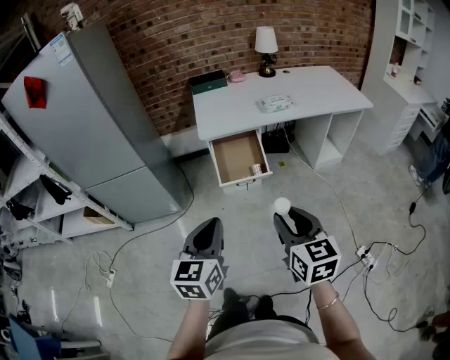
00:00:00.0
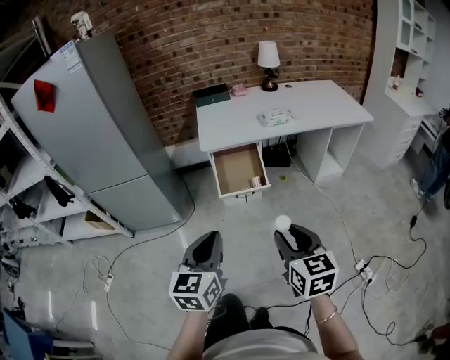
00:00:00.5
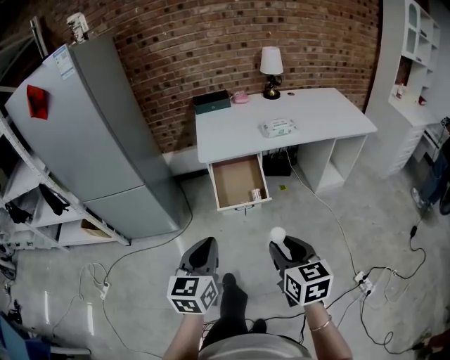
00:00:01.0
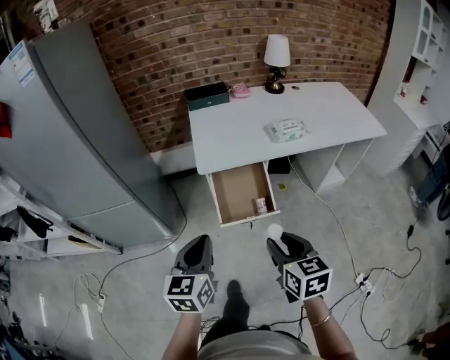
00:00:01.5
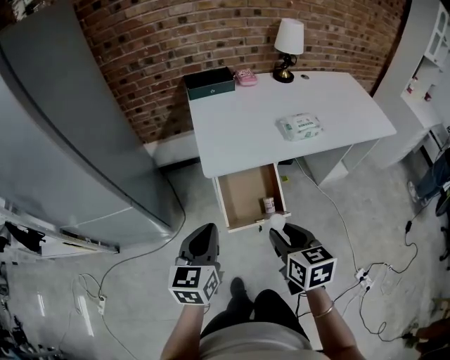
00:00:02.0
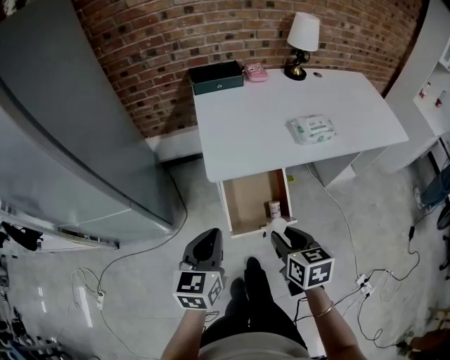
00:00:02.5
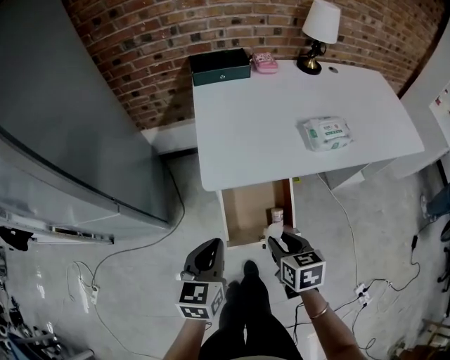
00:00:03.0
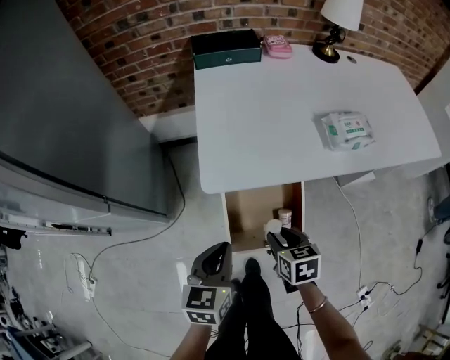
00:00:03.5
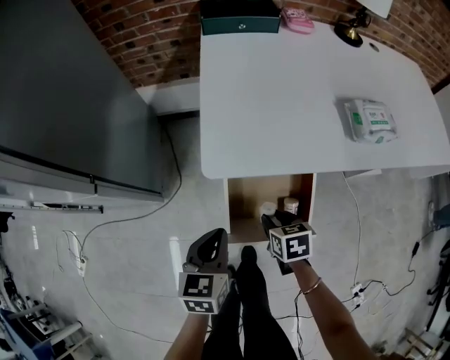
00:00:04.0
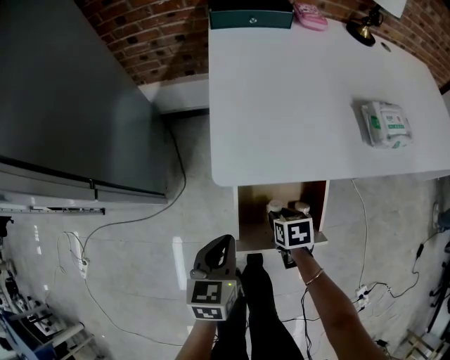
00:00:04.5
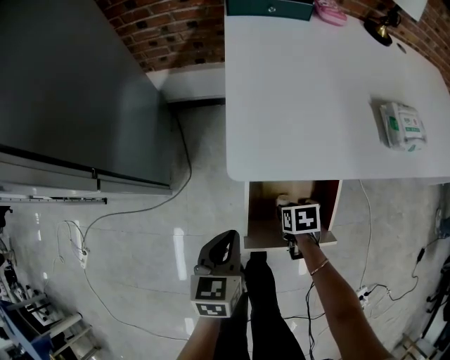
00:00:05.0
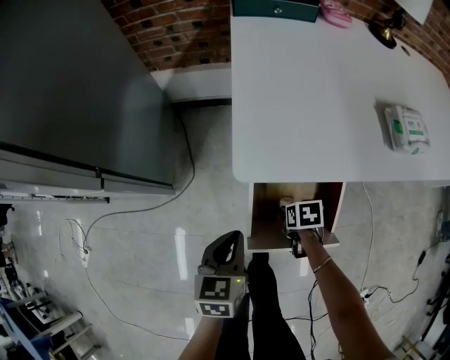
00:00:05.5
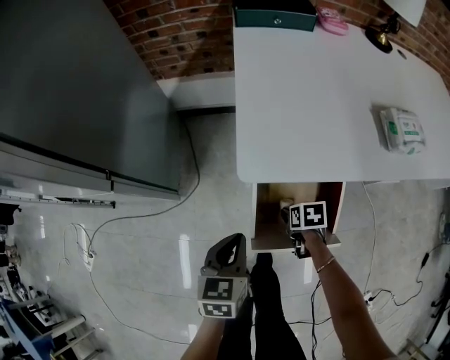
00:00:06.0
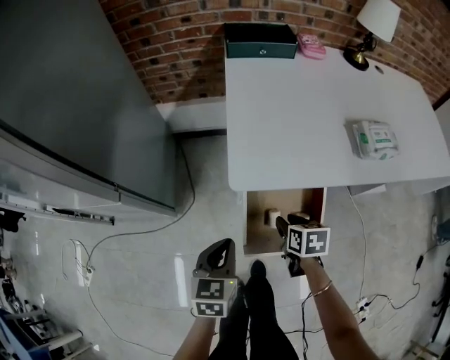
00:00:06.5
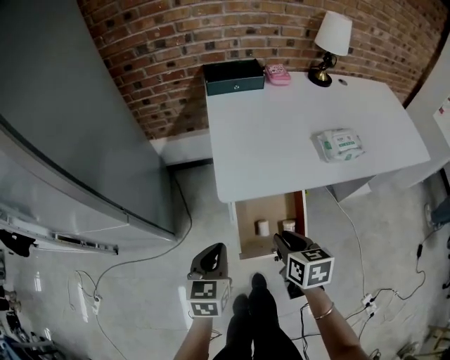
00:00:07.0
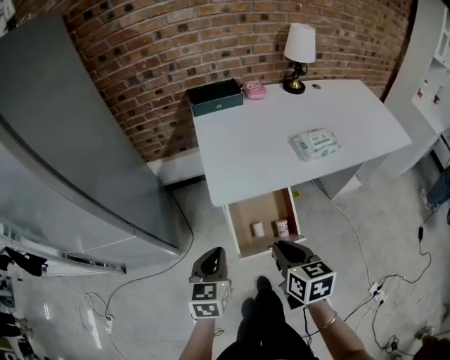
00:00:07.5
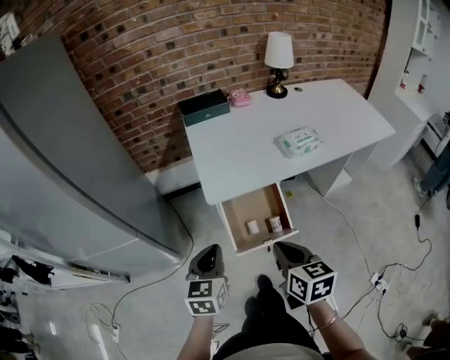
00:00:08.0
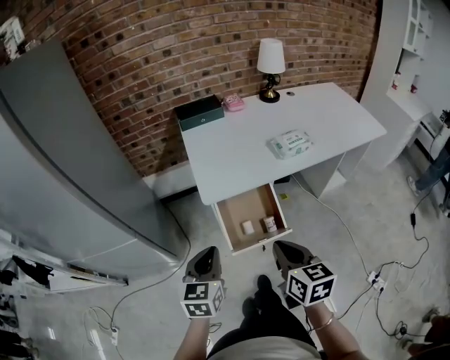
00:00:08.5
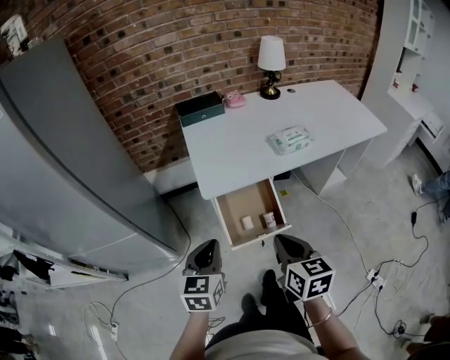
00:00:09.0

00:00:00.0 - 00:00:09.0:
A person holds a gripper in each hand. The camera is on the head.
00:00:00.0 - 00:00:02.0: The two grippers go roughly 40 cm forward.
00:00:02.0 - 00:00:04.5: Both grippers move downward and forward, approximately 40 cm. The right gripper tips its fingers downward by about 30 degrees; the left gripper changes its angle by about 20 degrees.
00:00:04.5 - 00:00:07.0: The left gripper goes approximately 15 cm upward. The right gripper moves upward, roughly 25 cm, and rotates about 30 degrees.
00:00:07.0 - 00:00:09.0: The left gripper is displaced upward and backward by some 20 cm; the right gripper travels backward and upward by roughly 25 cm, and closes.

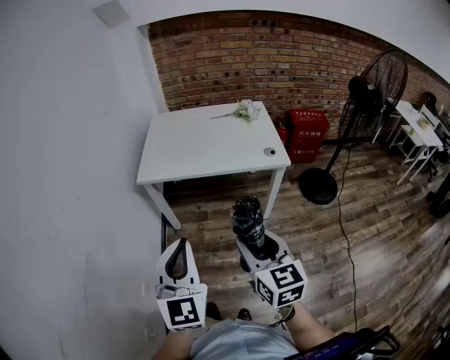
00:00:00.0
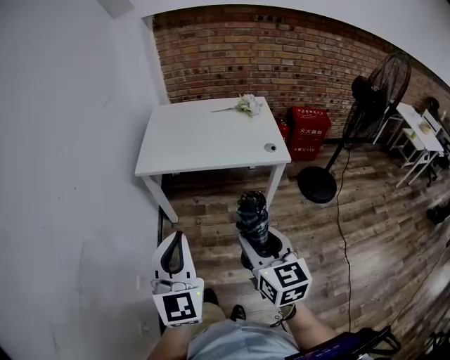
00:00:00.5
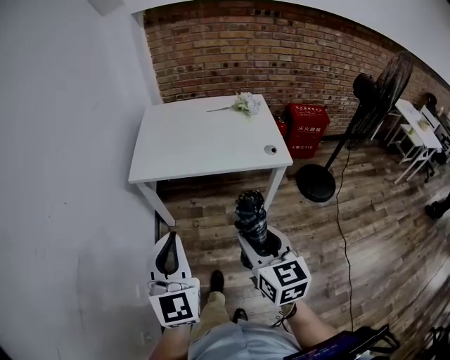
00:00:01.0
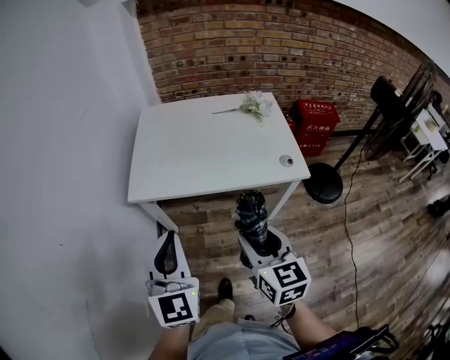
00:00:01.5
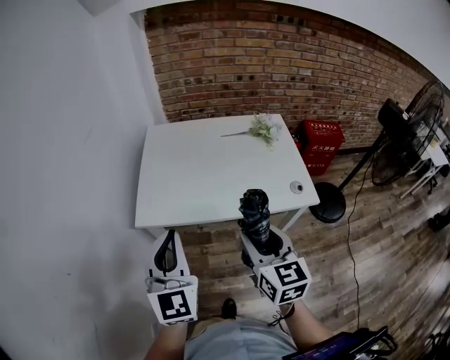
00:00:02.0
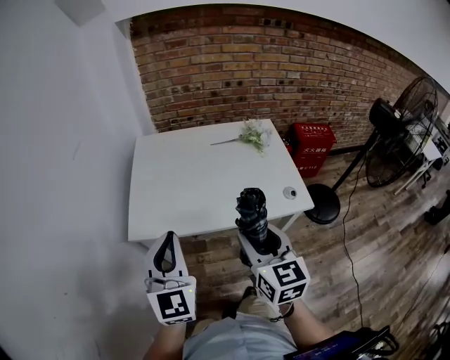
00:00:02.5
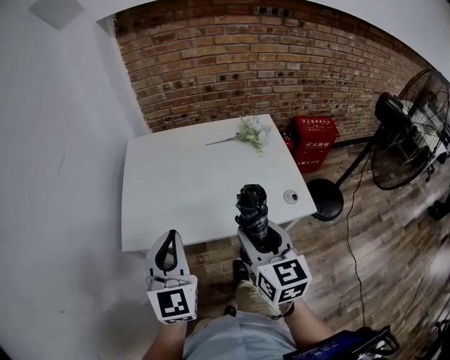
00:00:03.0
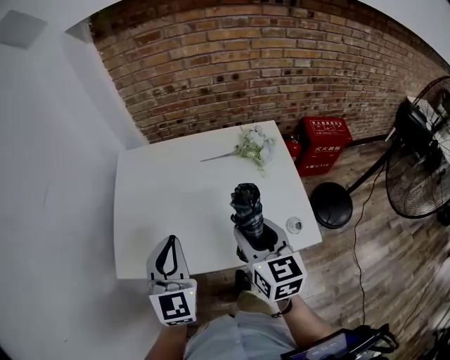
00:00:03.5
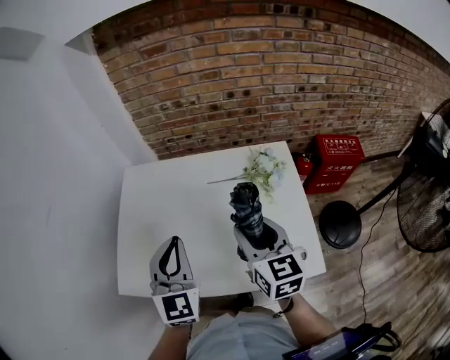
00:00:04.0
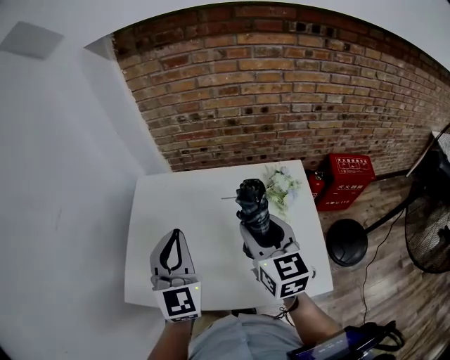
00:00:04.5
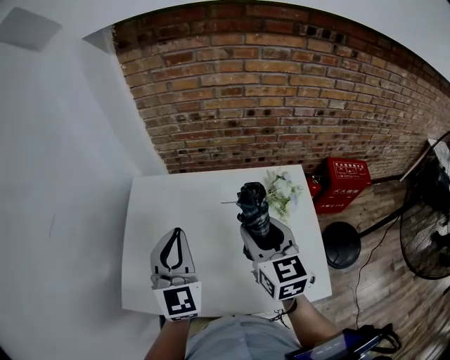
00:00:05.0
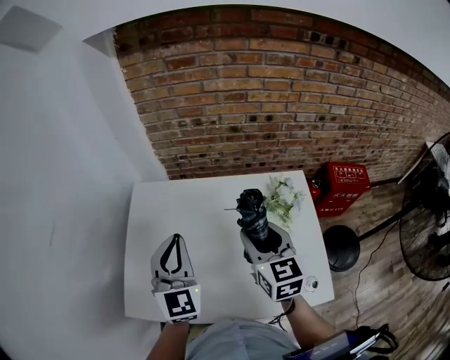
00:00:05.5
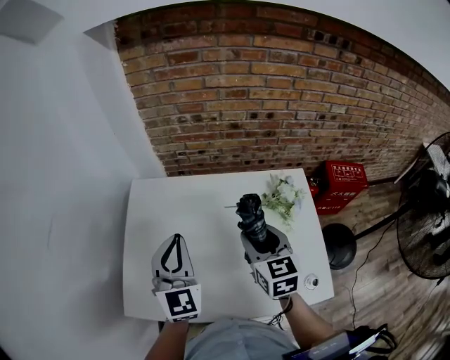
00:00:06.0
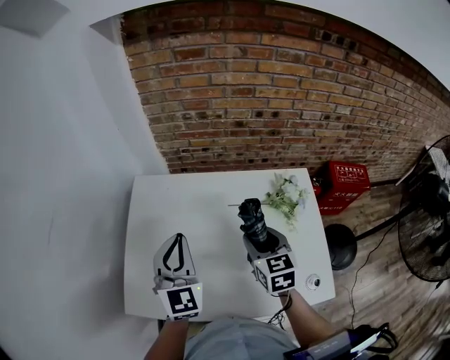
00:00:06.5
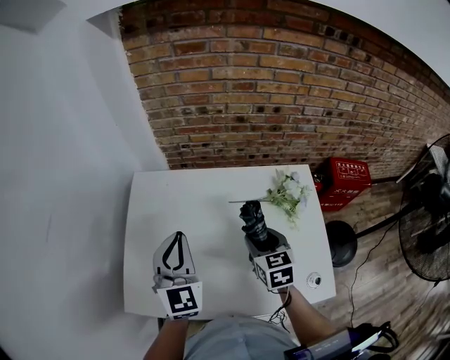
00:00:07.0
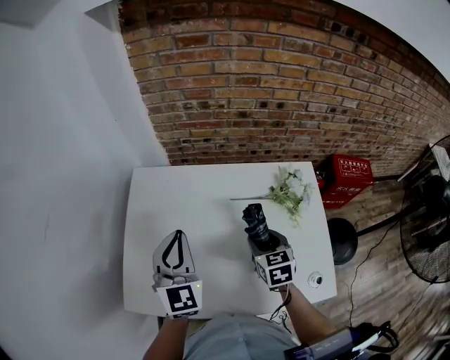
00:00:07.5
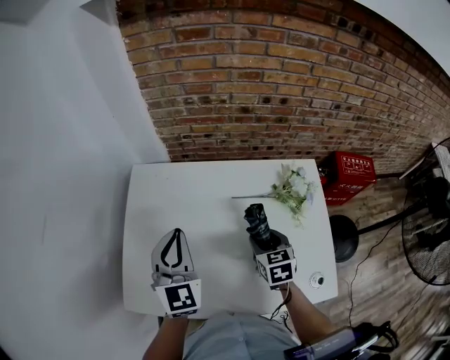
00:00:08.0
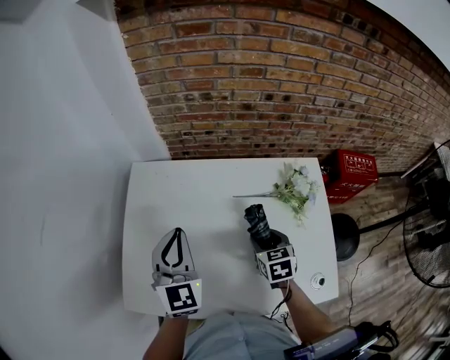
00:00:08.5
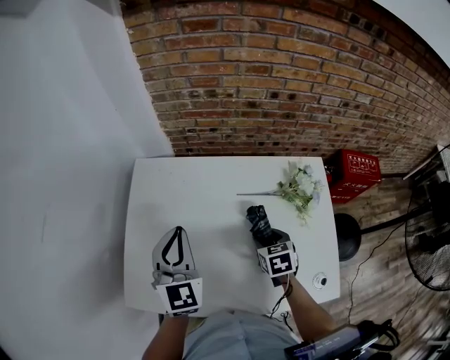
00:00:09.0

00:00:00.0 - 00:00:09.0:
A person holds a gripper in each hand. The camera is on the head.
00:00:00.0 - 00:00:02.0: Both grippers travel together forward, some 30 cm.
00:00:02.0 - 00:00:04.5: The two grippers go roughly 35 cm forward.
00:00:04.5 - 00:00:07.0: The right gripper shifts some 15 cm downward, and changes its angle by approximately 20 degrees. The left gripper goes roughly 10 cm forward, downward and to the left.
00:00:07.0 - 00:00:09.0: The right gripper is displaced downward by roughly 10 cm.

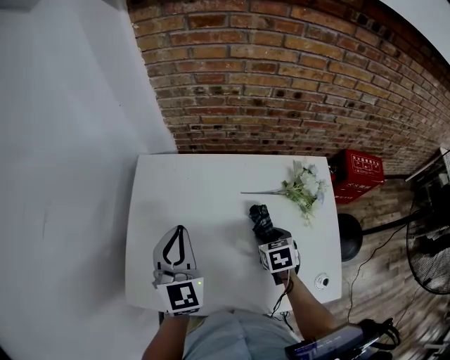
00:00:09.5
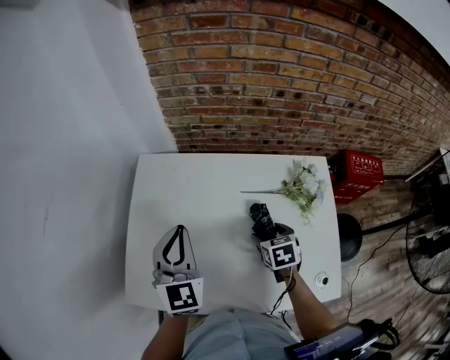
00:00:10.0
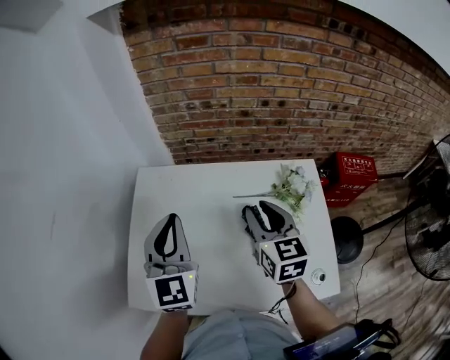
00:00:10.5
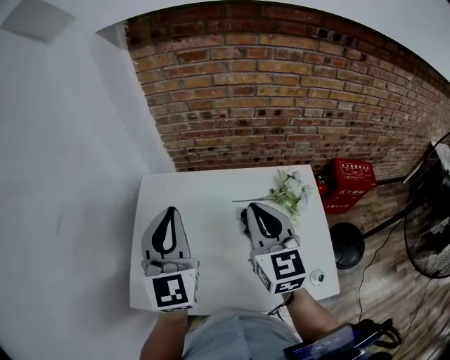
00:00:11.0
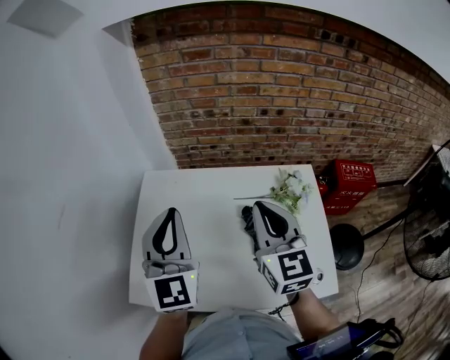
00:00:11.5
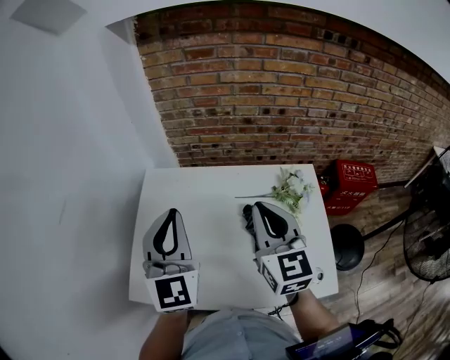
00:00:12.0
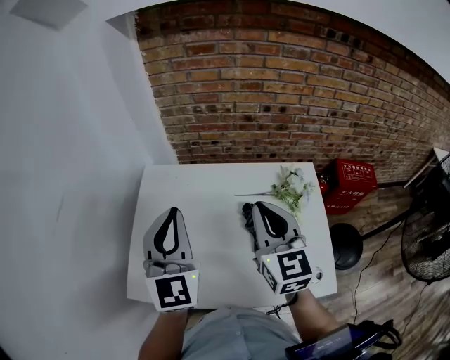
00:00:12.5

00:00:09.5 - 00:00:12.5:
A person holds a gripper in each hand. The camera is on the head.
00:00:09.5 - 00:00:11.0: The right gripper heads upward, covering roughly 30 cm, points its fingers some 50 degrees further upward, and closes up; the left gripper goes about 15 cm upward.
00:00:11.0 - 00:00:12.5: The grippers make only small movements.

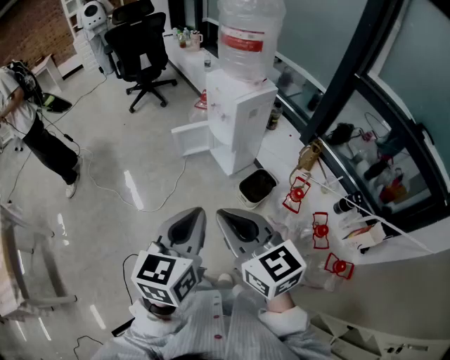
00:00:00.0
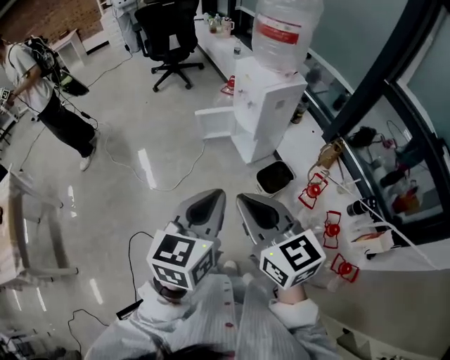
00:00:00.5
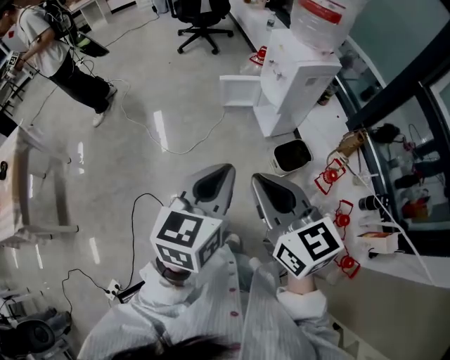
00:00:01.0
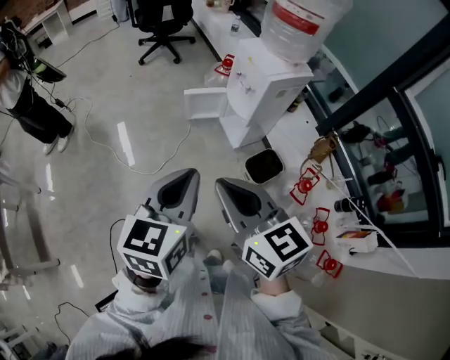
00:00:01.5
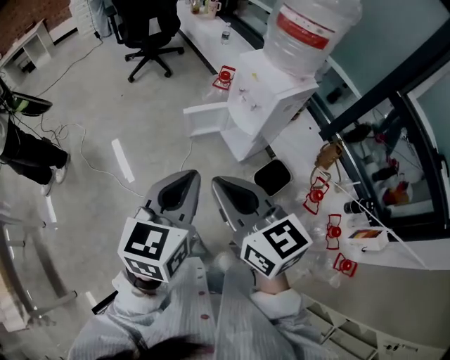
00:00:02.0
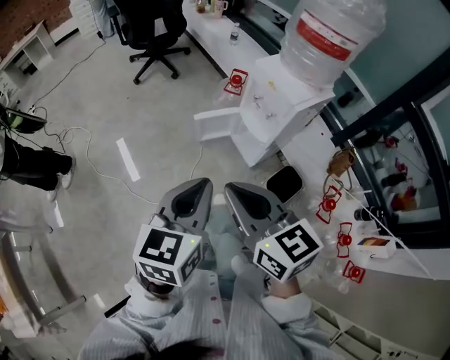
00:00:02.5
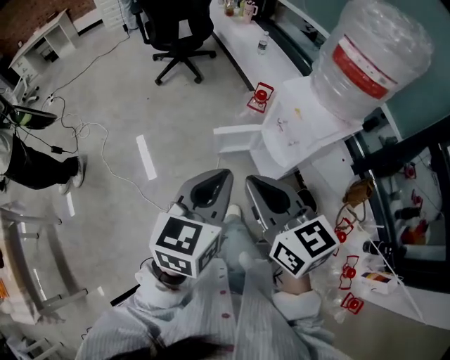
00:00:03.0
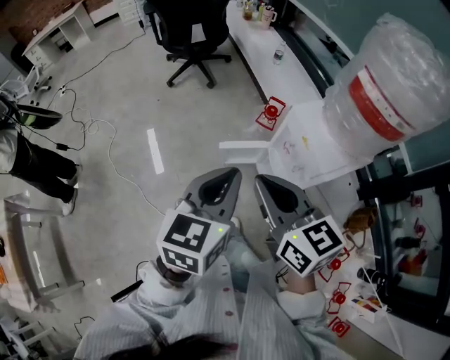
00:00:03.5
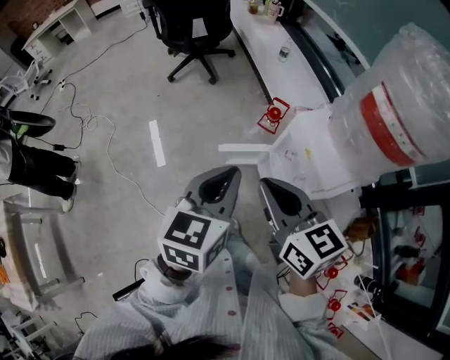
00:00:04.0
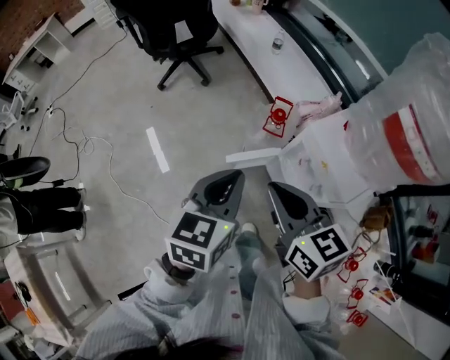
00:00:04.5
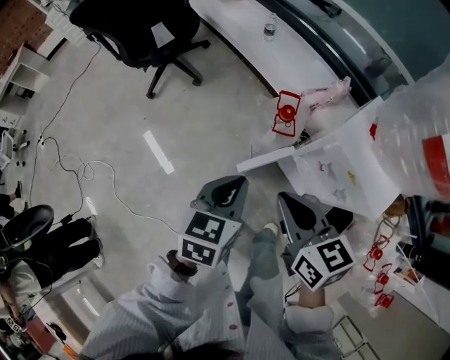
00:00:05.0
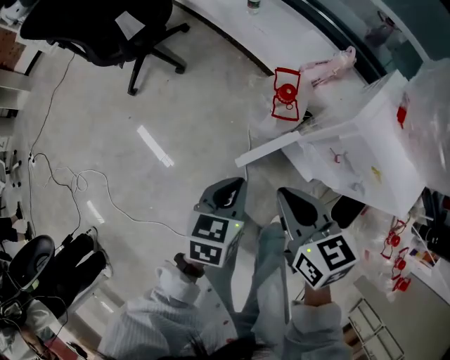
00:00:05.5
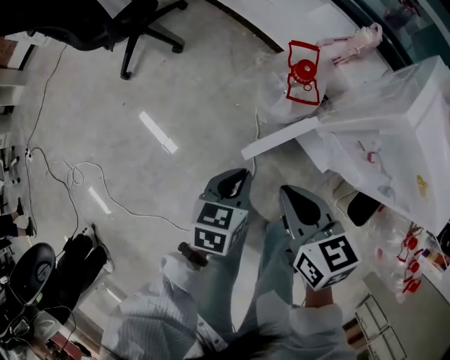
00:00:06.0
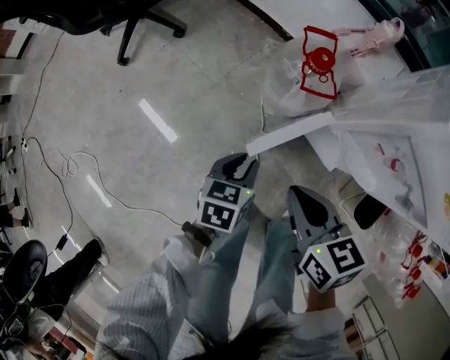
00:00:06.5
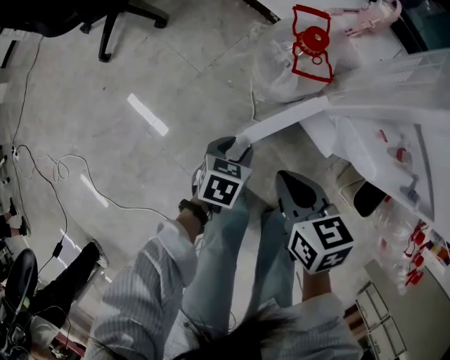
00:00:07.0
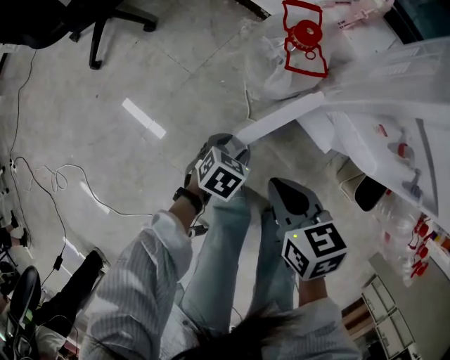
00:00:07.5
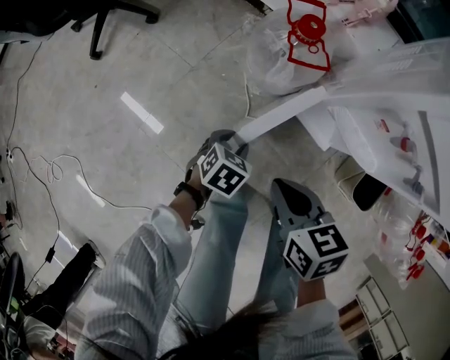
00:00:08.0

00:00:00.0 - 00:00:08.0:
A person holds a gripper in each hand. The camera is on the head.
00:00:00.0 - 00:00:02.0: Both grippers move forward and to the left, approximately 25 cm.
00:00:02.0 - 00:00:04.0: Both grippers move forward, roughly 35 cm.
00:00:04.0 - 00:00:06.0: The two grippers go some 35 cm downward. The left gripper changes its angle by roughly 40 degrees. Meanwhile the right gripper rotates some 30 degrees.
00:00:06.0 - 00:00:08.0: The right gripper heads downward, covering approximately 15 cm. Meanwhile the left gripper heads downward, covering some 20 cm, rotates approximately 30 degrees, and opens.
